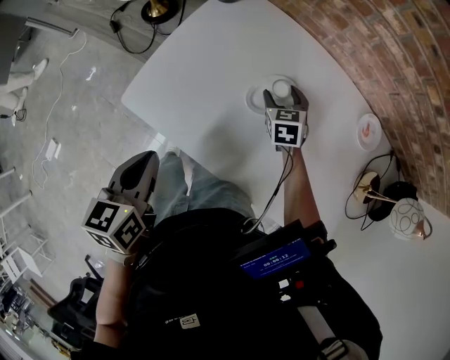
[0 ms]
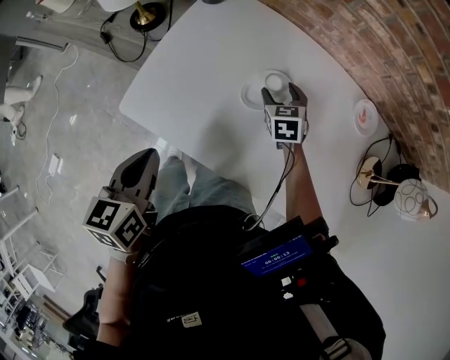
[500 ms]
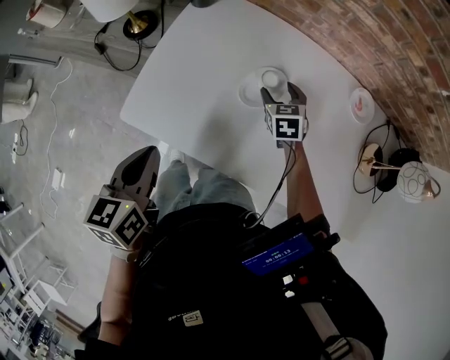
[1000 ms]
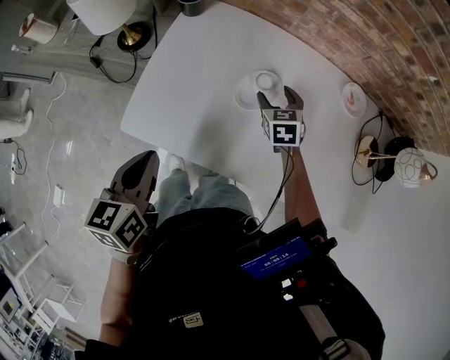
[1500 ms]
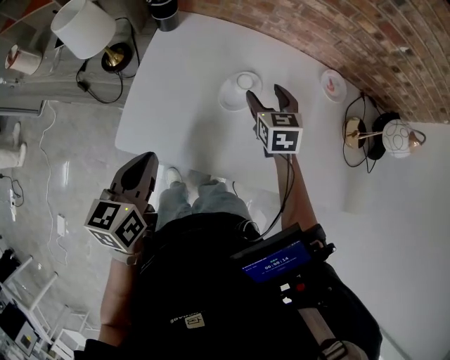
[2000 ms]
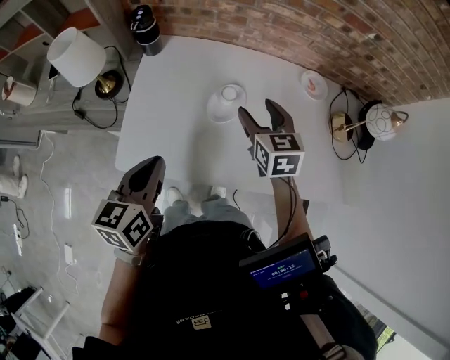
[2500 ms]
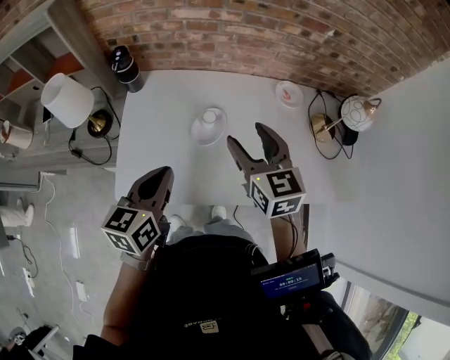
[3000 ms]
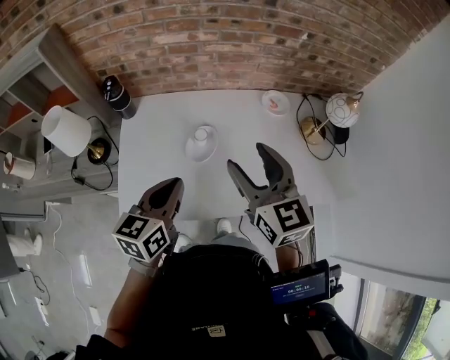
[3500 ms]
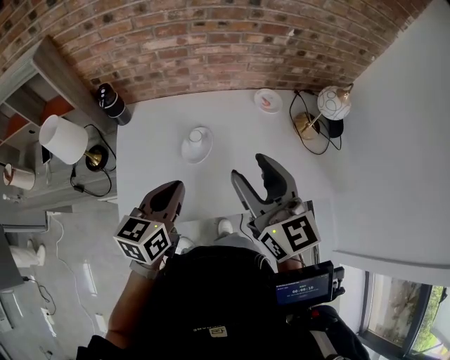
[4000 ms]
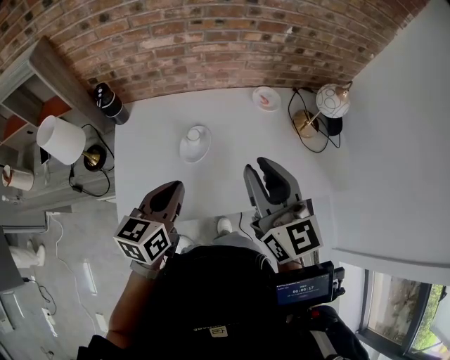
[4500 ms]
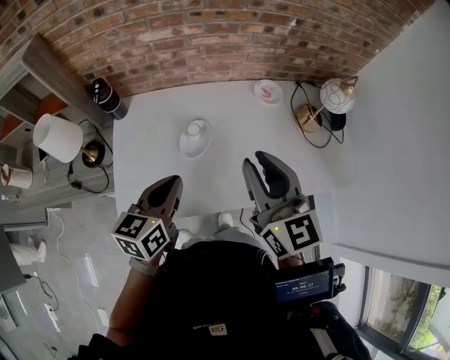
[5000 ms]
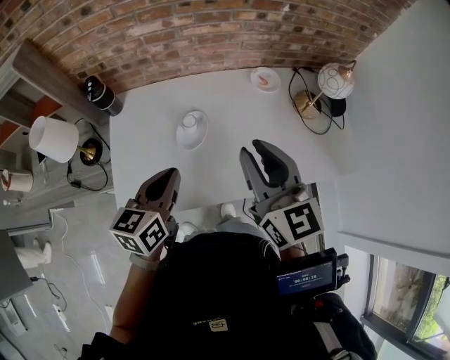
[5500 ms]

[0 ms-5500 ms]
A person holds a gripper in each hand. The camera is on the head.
0 ms to 2000 ms: The right gripper is displaced upward and backward by roughly 15 cm, while the left gripper shifts by approximately 5 cm, and turns by roughly 20 degrees.
2000 ms to 3500 ms: The left gripper heads to the right, upward and forward, covering about 15 cm, and rotates some 30 degrees. The right gripper moves upward and backward, approximately 25 cm, and swivels approximately 30 degrees.
3500 ms to 5500 ms: The right gripper closes.

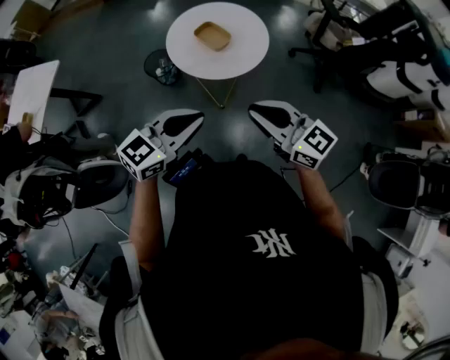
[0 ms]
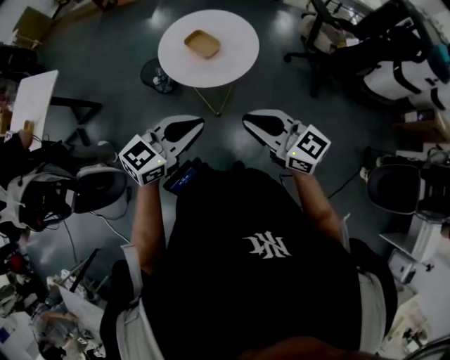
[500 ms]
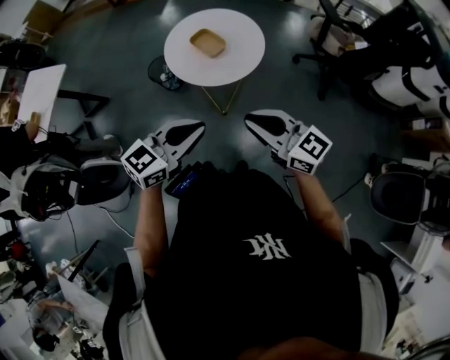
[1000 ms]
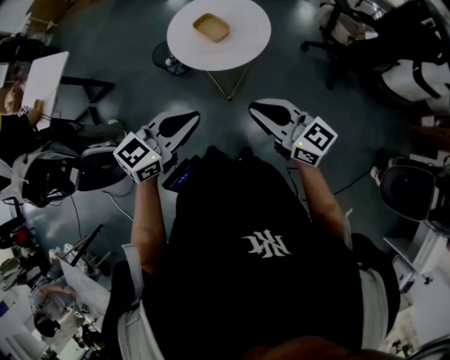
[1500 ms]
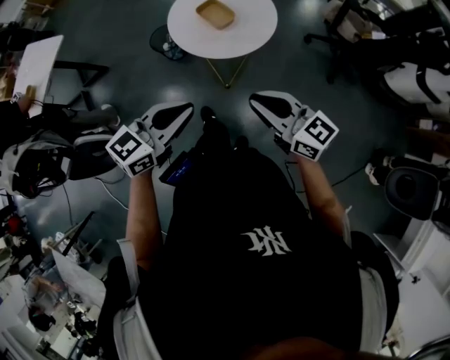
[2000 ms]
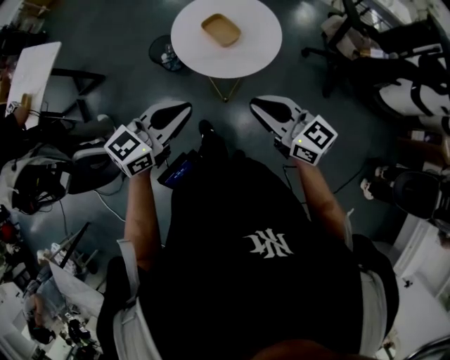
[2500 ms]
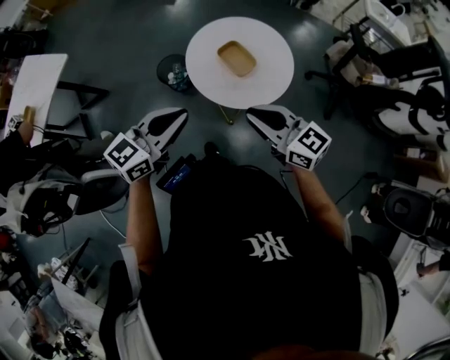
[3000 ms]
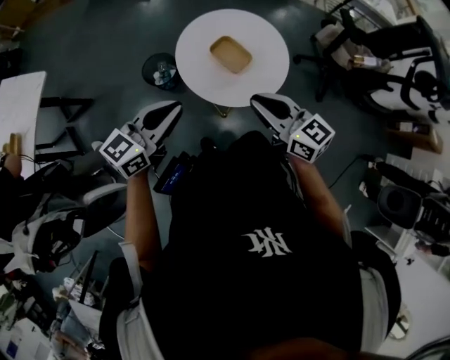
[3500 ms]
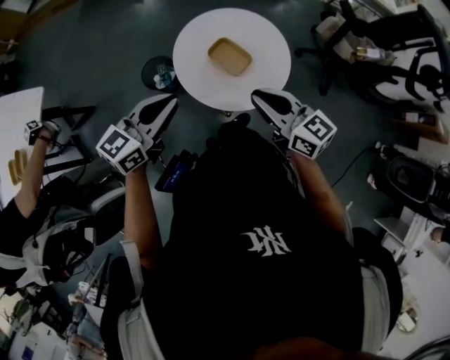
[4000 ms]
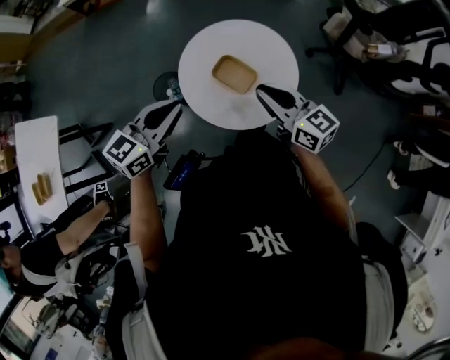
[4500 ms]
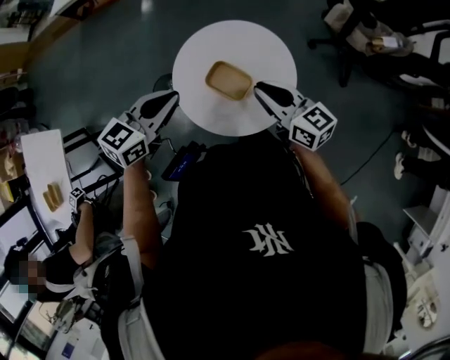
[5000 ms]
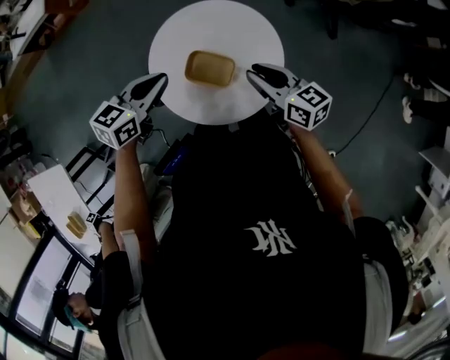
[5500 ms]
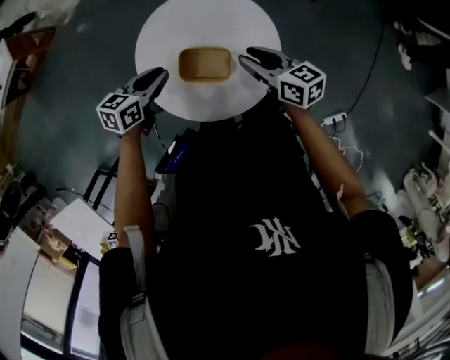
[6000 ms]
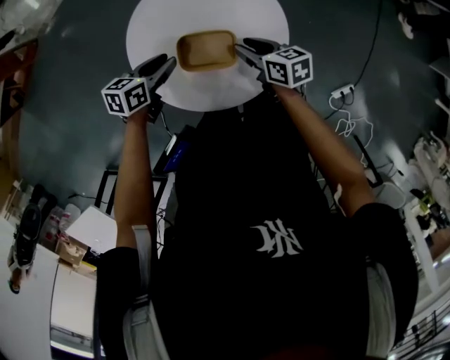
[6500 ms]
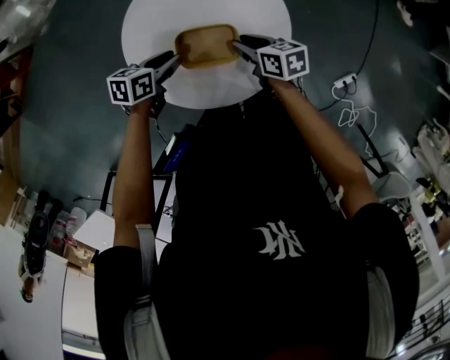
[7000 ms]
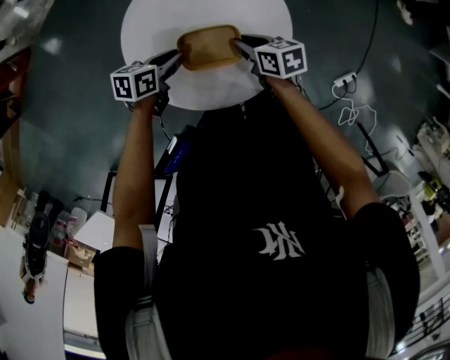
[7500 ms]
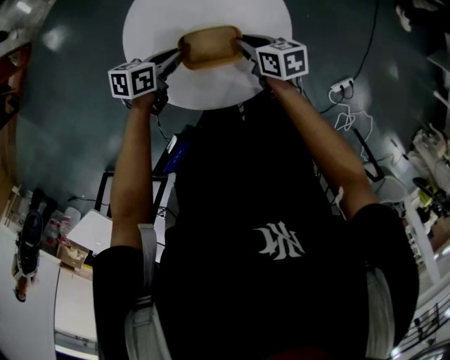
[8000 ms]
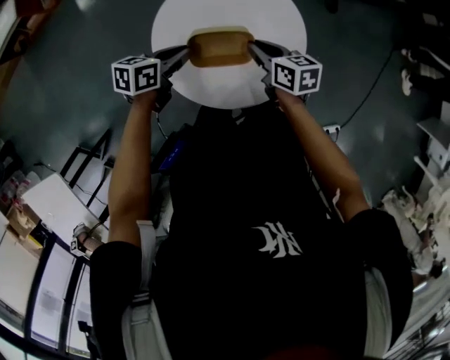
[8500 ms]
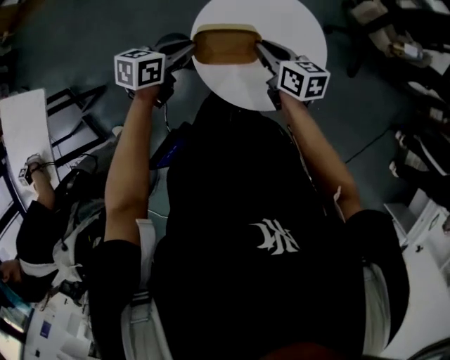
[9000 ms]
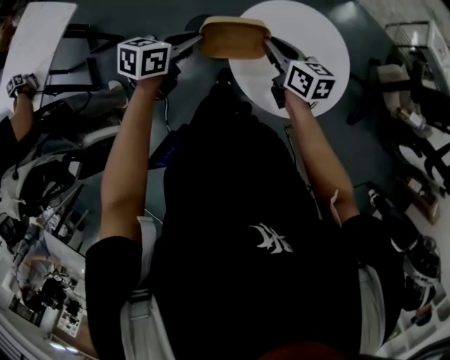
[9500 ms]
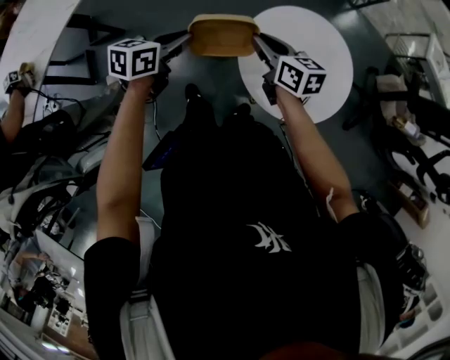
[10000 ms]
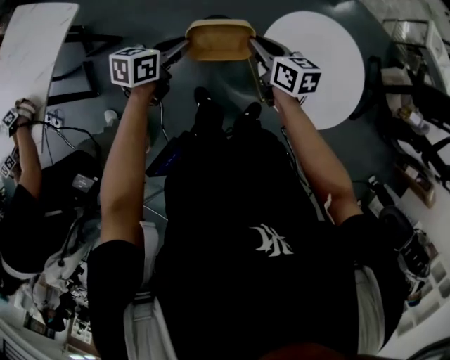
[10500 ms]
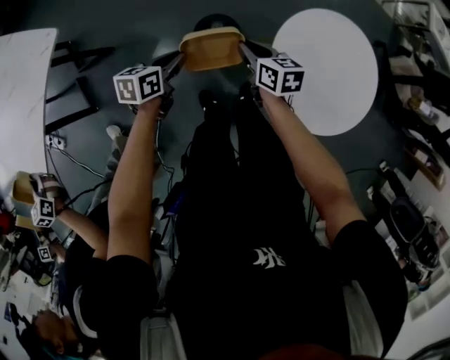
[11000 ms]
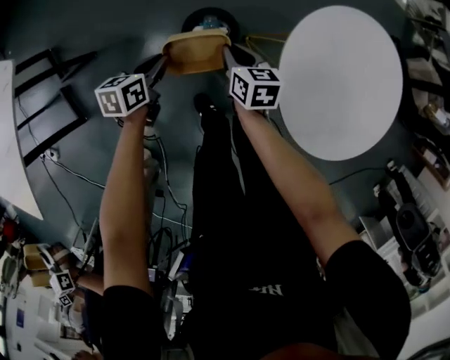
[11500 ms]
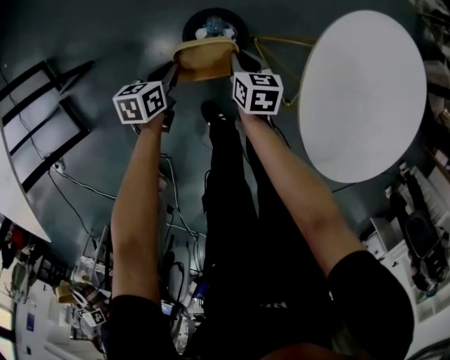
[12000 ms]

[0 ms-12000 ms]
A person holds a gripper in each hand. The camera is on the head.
0 ms to 2000 ms: The right gripper goes roughly 5 cm to the right.
2000 ms to 4000 ms: The grippers both shift forward and to the left by roughly 30 cm.
4000 ms to 6000 ms: The right gripper ends up some 25 cm from where it was, swivels some 40 degrees, and opens. The left gripper ends up some 35 cm from where it was, and swivels about 50 degrees.
6000 ms to 8000 ms: The left gripper heads downward and to the right, covering about 15 cm, and changes its angle by roughly 20 degrees. The right gripper moves downward, about 15 cm, and rotates approximately 30 degrees.
8000 ms to 10000 ms: The left gripper ends up roughly 40 cm from where it was, and swivels approximately 70 degrees. Meanwhile the right gripper shifts by approximately 35 cm, and swivels roughly 60 degrees.
10000 ms to 12000 ms: Both grippers travel together downward, about 40 cm. The right gripper rotates some 30 degrees. Meanwhile the left gripper swivels about 20 degrees.

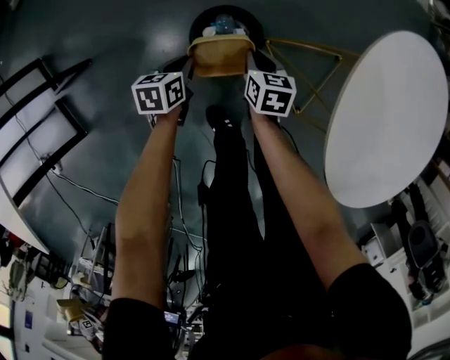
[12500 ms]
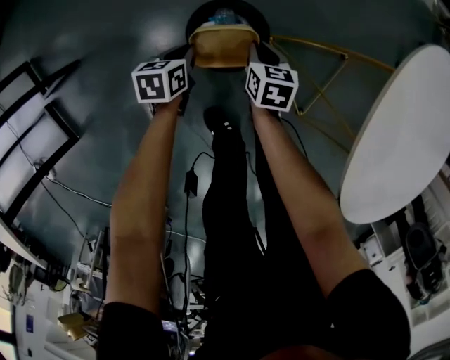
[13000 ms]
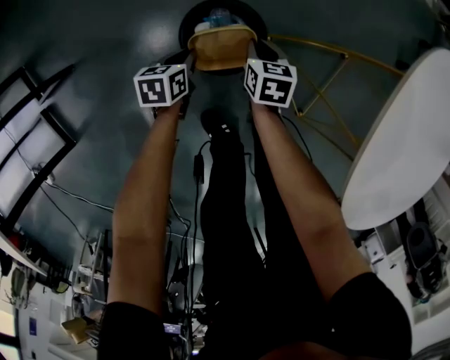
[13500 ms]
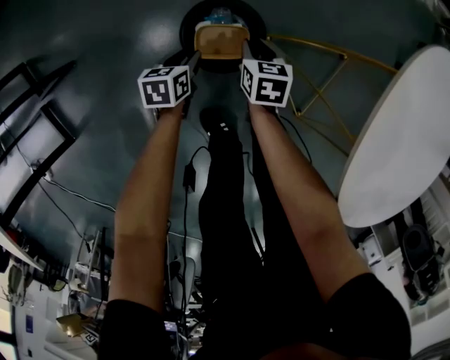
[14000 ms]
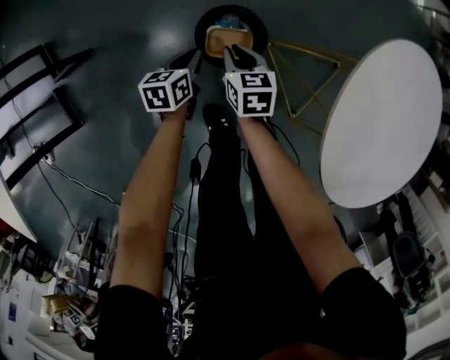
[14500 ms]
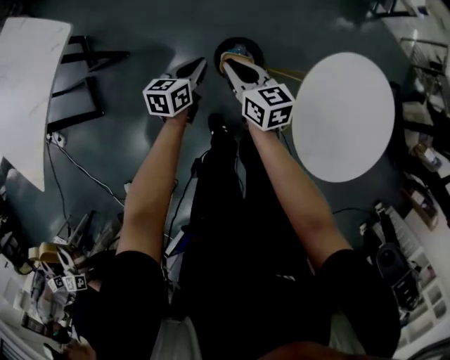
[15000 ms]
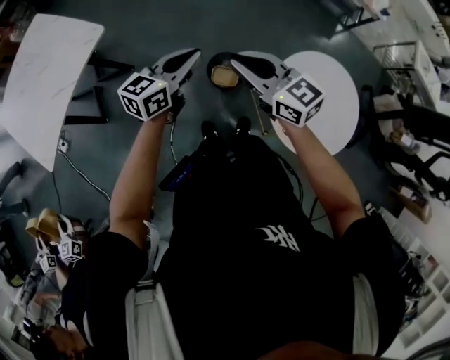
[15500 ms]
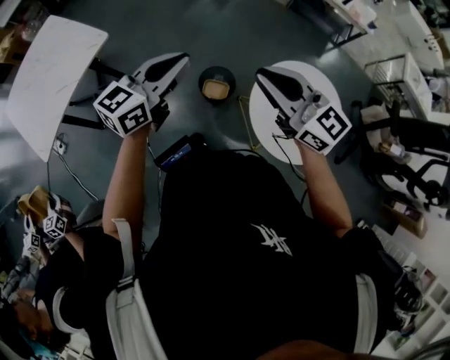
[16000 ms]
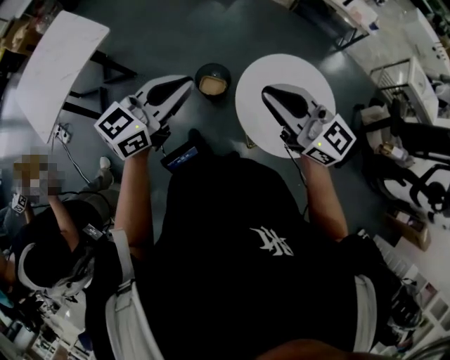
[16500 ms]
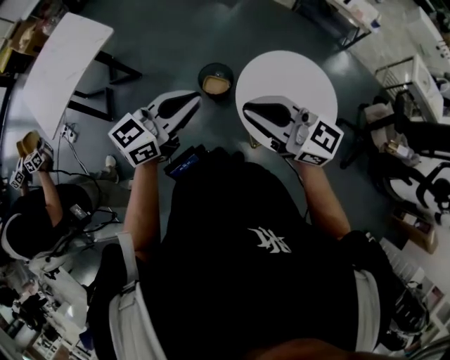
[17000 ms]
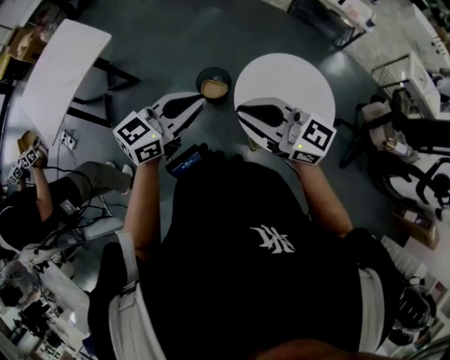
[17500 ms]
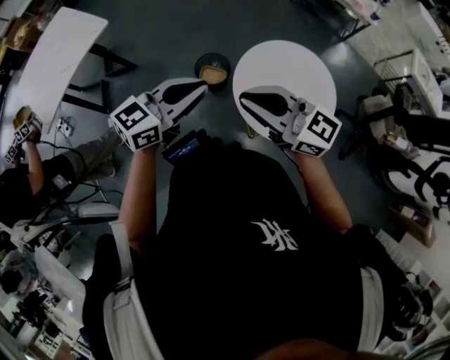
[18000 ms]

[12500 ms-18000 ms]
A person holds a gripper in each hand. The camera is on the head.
12500 ms to 14500 ms: The right gripper travels to the left by approximately 10 cm, and goes downward and returns, about 10 cm each way. Meanwhile the left gripper travels downward and back again, approximately 10 cm each way, and opens, then closes once more.
14500 ms to 16000 ms: The grippers both shift upward by approximately 60 cm. The right gripper angles its fingers upward, by approximately 50 degrees, while the left gripper tilts its fingers approximately 40 degrees upward.
16000 ms to 18000 ms: The left gripper moves backward and to the right, approximately 20 cm, while the right gripper heads backward, covering roughly 15 cm.

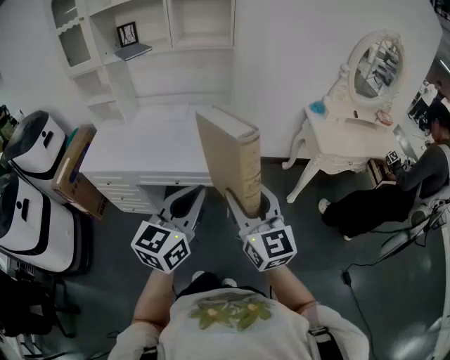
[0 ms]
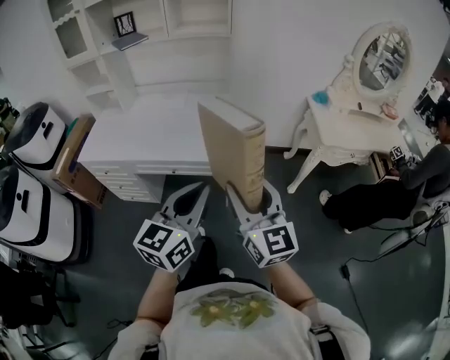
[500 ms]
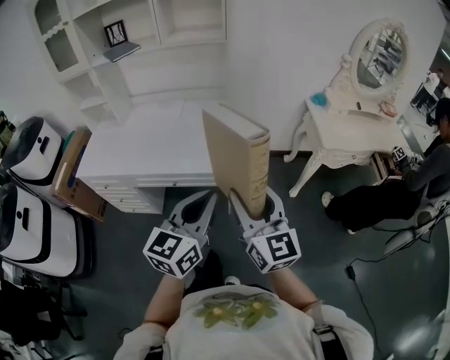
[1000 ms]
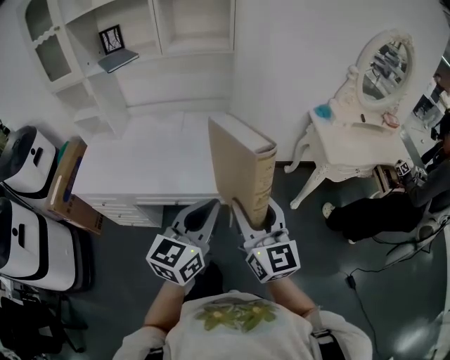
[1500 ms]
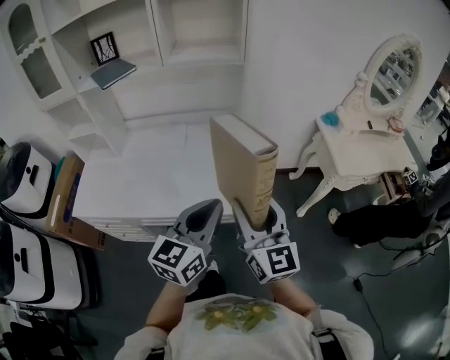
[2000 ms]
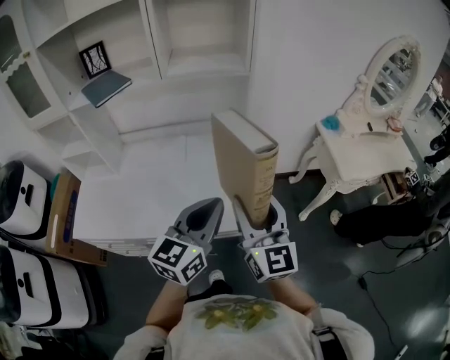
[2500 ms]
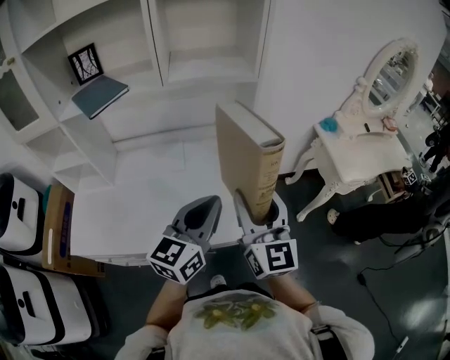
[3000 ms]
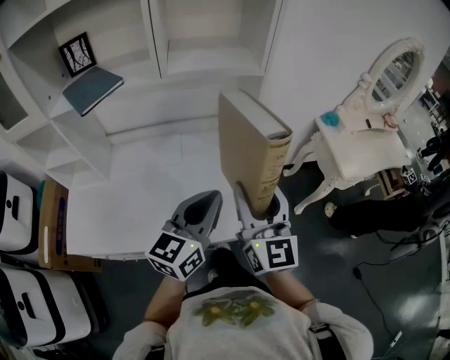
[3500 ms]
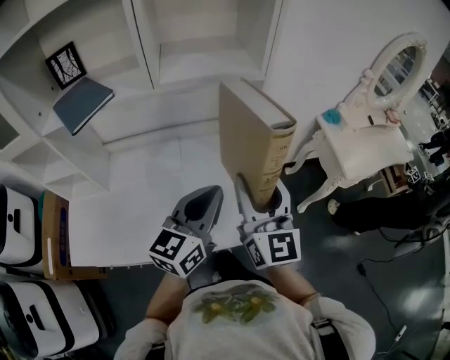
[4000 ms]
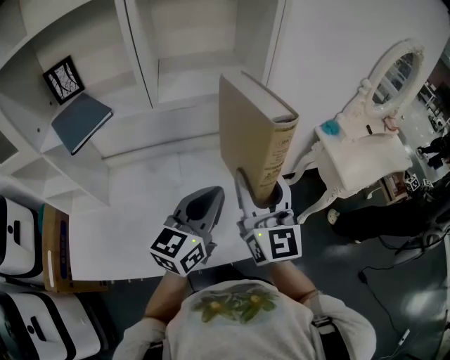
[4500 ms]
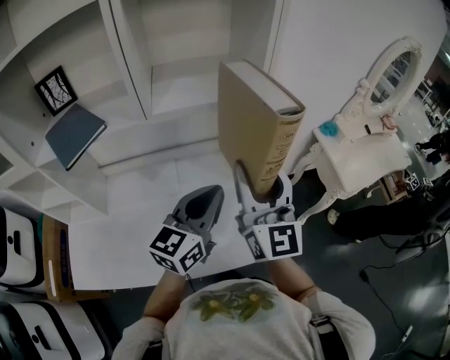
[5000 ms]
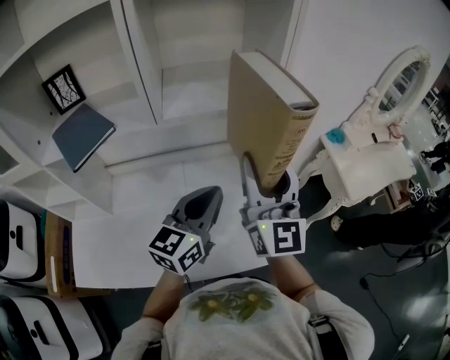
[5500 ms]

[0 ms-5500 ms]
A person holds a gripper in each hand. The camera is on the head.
0 ms to 2000 ms: Both grippers move forward, some 20 cm.
2000 ms to 3500 ms: The two grippers go some 20 cm forward and to the left.
3500 ms to 5500 ms: The right gripper is displaced forward and upward by about 20 cm. Meanwhile the left gripper moves forward, roughly 15 cm.
